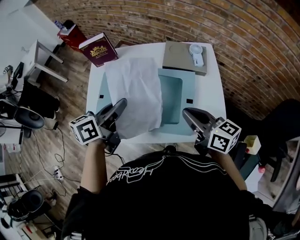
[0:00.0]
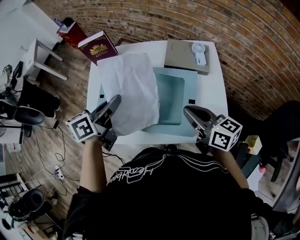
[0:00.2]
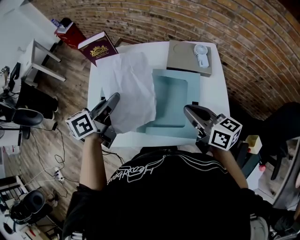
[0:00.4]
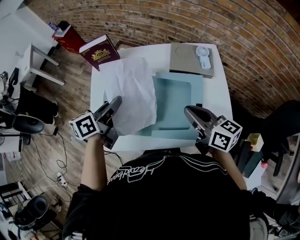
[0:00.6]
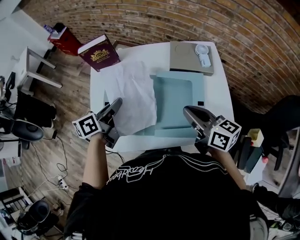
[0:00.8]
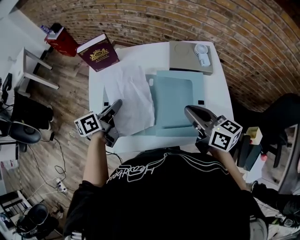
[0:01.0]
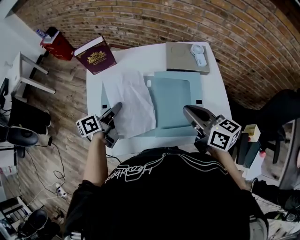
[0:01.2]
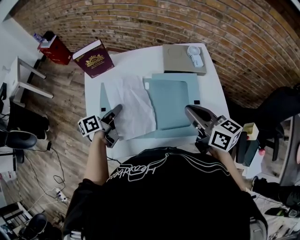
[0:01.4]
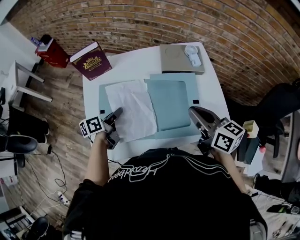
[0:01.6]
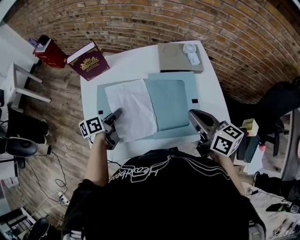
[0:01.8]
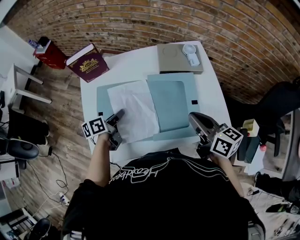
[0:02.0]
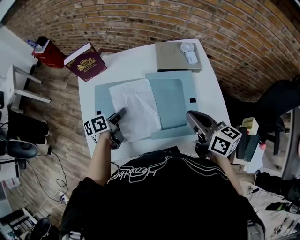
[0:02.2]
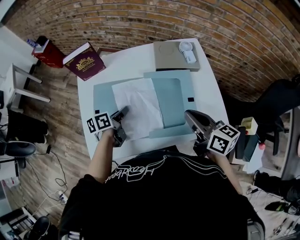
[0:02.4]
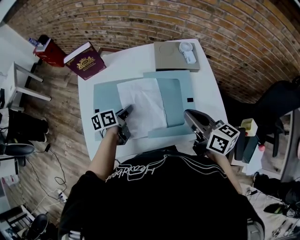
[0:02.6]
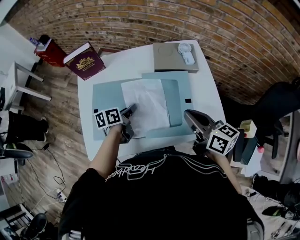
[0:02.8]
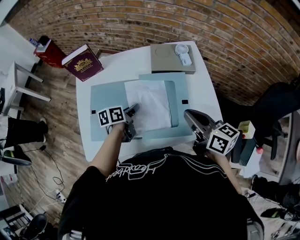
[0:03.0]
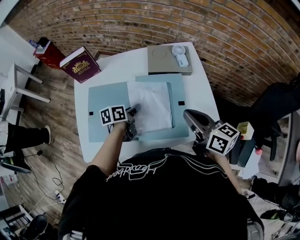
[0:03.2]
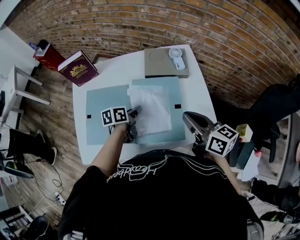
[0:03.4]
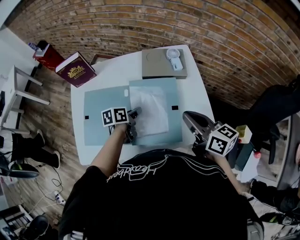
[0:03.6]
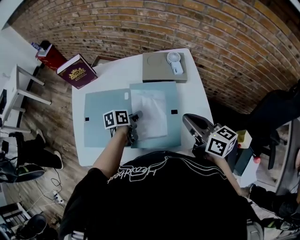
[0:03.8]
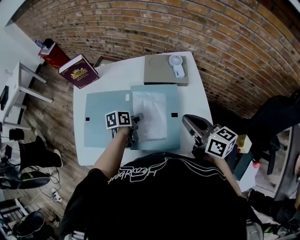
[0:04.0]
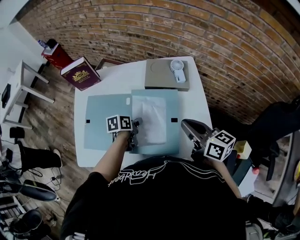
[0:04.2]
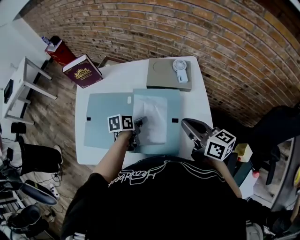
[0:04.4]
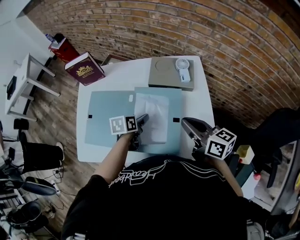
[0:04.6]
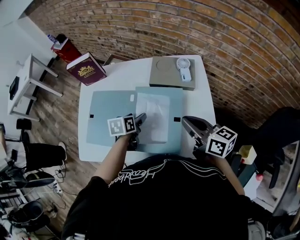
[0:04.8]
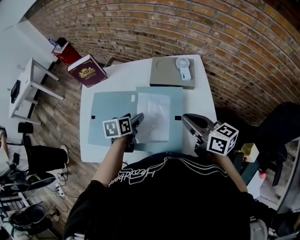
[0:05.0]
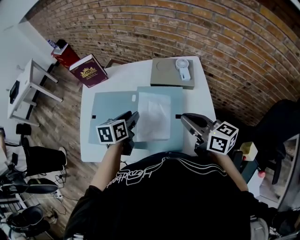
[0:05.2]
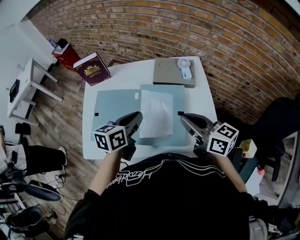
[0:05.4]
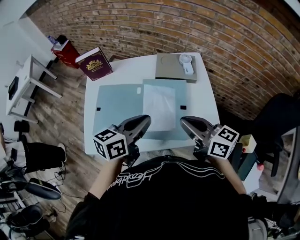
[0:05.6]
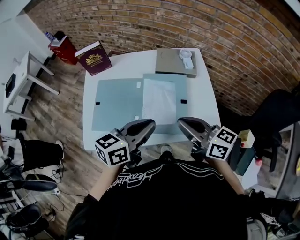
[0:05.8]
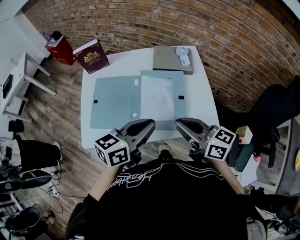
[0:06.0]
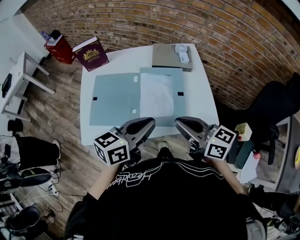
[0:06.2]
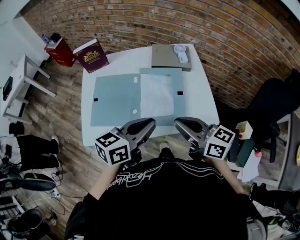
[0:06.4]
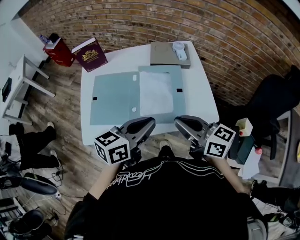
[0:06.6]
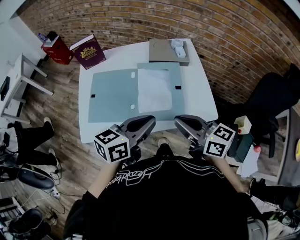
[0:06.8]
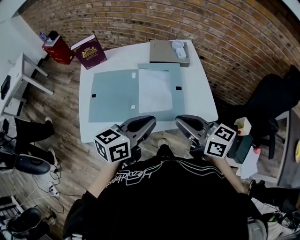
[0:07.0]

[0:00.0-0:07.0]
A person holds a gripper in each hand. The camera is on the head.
0:00.0 to 0:01.4: The right gripper is displaced to the left by about 5 cm. Meanwhile the left gripper travels downward, to the left and forward by about 20 cm, and turns by roughly 20 degrees.
0:01.4 to 0:02.8: The right gripper ends up about 5 cm from where it was. Meanwhile the left gripper is displaced to the right and downward by approximately 10 cm.
0:02.8 to 0:04.2: The two grippers go roughly 10 cm to the right.
0:04.2 to 0:05.6: The left gripper moves upward and backward, approximately 25 cm, turns by about 40 degrees, and opens, then closes again; the right gripper goes some 10 cm backward and to the left.
0:05.6 to 0:07.0: The grippers both shift backward by roughly 10 cm.

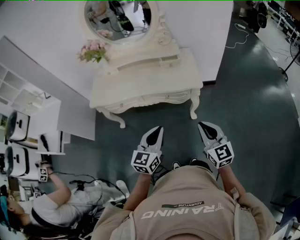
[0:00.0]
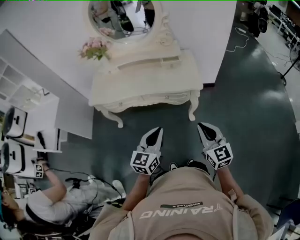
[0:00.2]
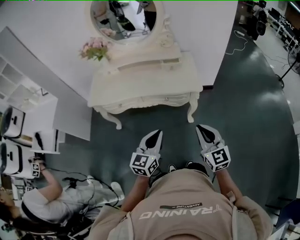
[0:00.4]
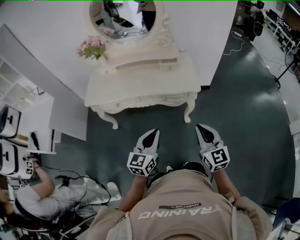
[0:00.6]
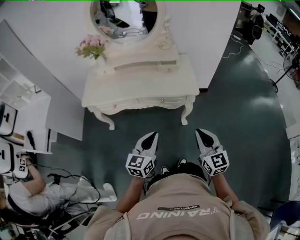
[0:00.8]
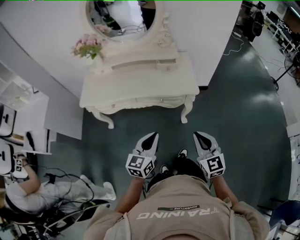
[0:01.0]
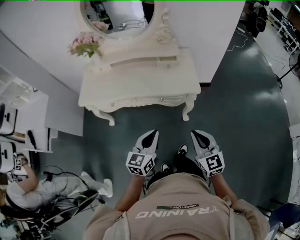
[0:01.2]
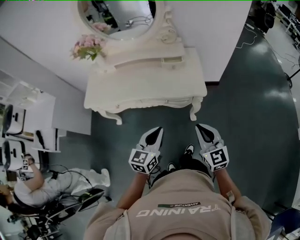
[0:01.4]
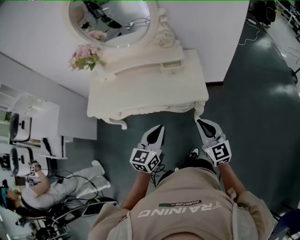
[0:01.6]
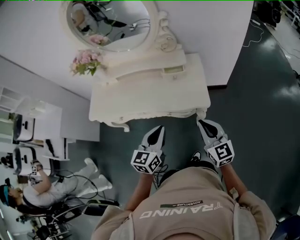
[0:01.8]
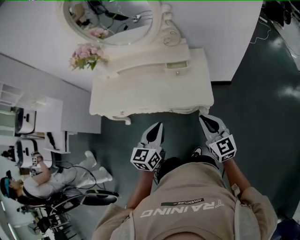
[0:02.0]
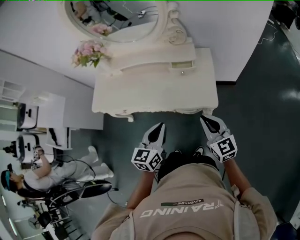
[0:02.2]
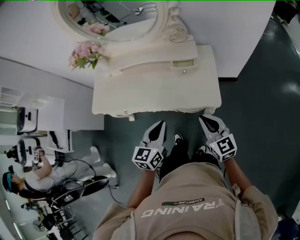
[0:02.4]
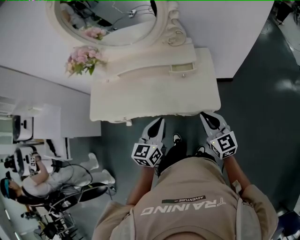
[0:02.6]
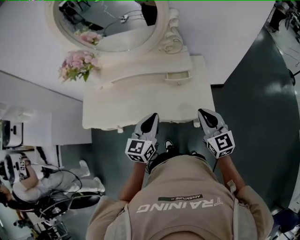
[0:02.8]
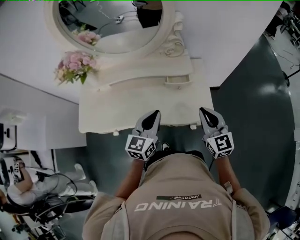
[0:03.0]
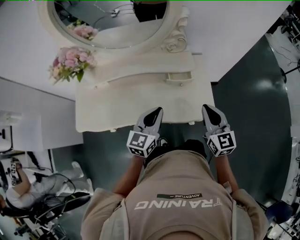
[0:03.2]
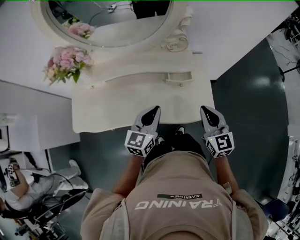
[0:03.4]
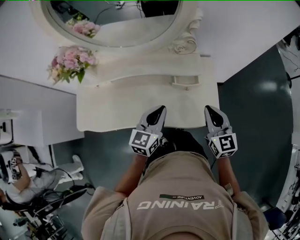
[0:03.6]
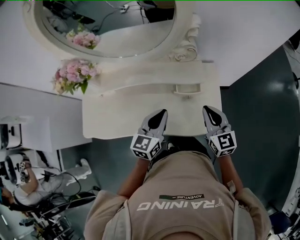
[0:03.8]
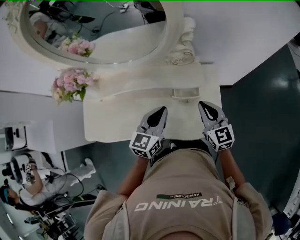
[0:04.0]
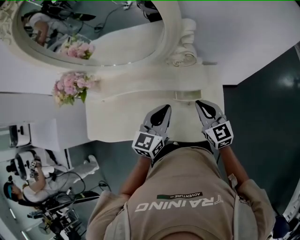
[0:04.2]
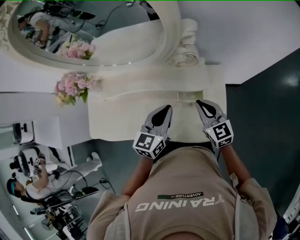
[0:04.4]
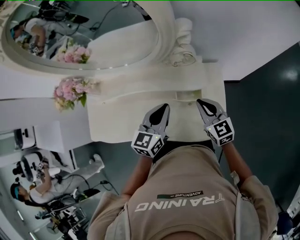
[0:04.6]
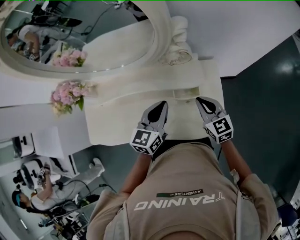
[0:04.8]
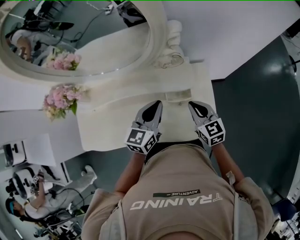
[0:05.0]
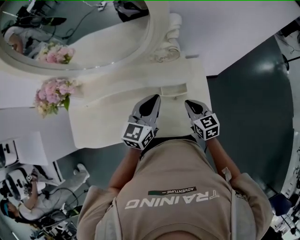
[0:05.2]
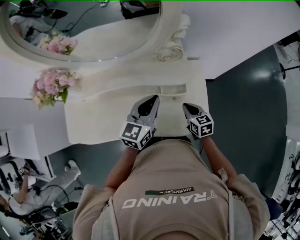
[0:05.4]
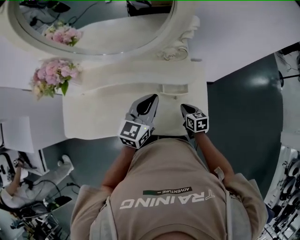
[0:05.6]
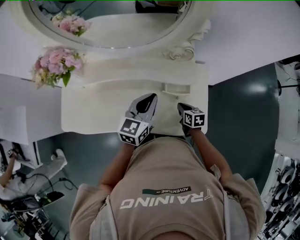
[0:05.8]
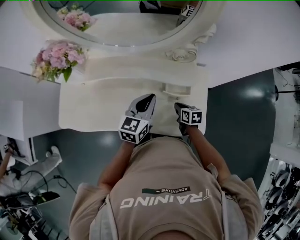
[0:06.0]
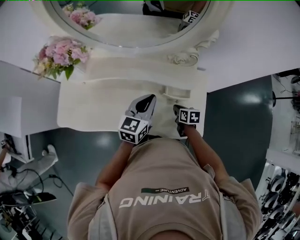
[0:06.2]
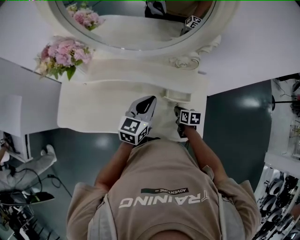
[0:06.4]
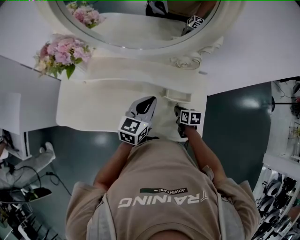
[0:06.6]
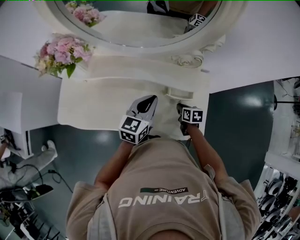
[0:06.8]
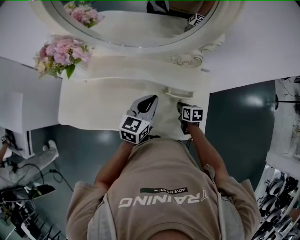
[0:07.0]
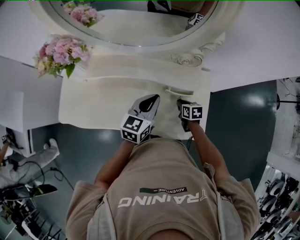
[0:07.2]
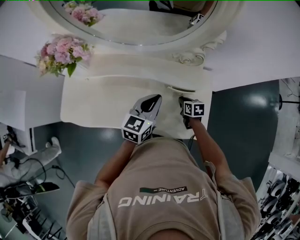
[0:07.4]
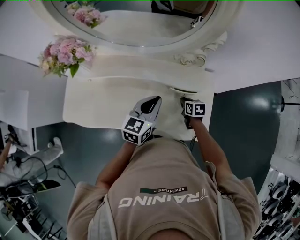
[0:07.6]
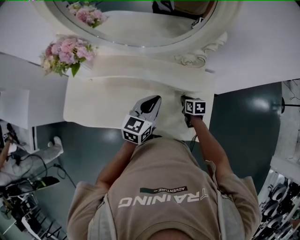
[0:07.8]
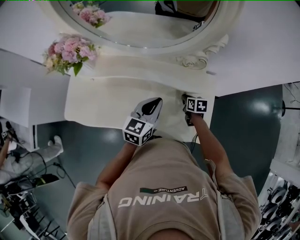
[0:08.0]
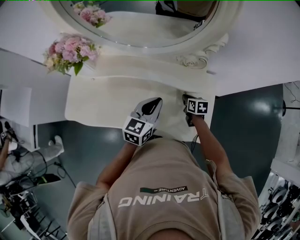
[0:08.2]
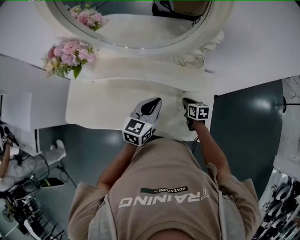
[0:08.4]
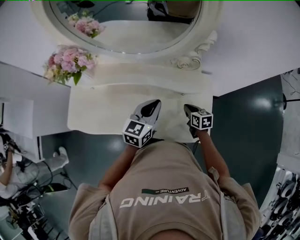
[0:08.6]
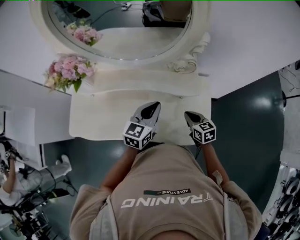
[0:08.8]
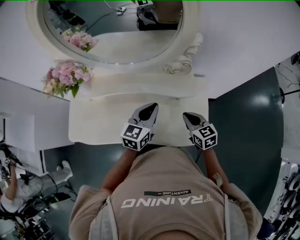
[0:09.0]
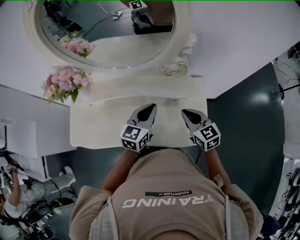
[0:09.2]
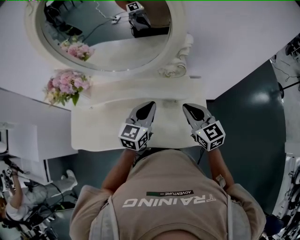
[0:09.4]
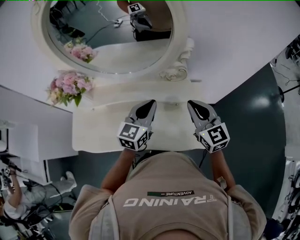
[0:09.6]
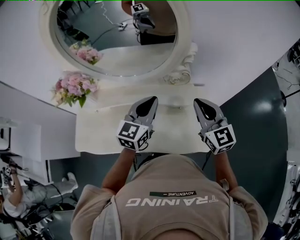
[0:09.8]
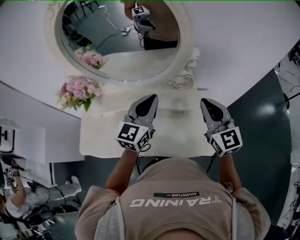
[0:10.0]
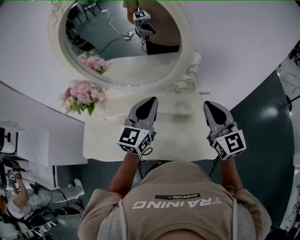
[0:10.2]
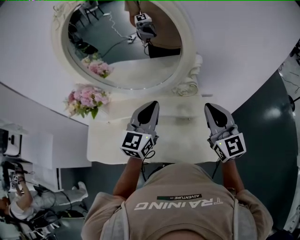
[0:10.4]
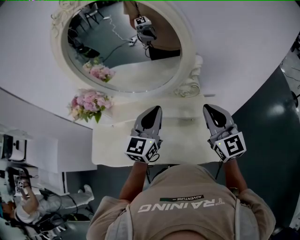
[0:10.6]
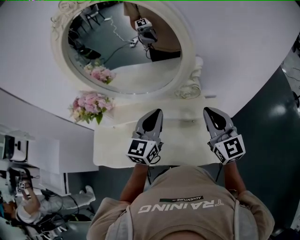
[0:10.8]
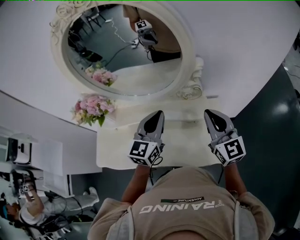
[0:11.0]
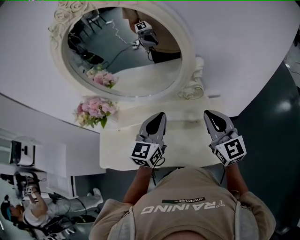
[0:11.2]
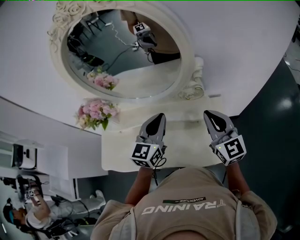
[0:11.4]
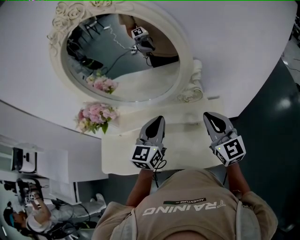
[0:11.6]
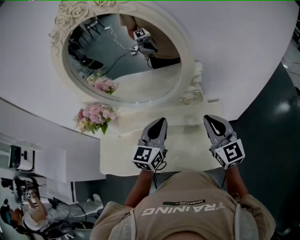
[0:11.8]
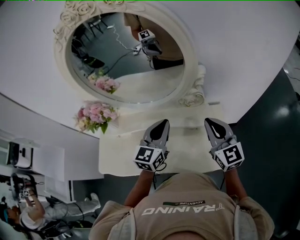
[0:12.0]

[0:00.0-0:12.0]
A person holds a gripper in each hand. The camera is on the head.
0:00.0 to 0:01.6: The grippers both shift forward by about 15 cm.
0:01.6 to 0:03.0: Both grippers travel together forward, approximately 20 cm.
0:03.0 to 0:04.4: The two grippers go approximately 20 cm forward.
0:04.4 to 0:06.0: The right gripper travels downward by some 20 cm, and tips its fingers downward by approximately 30 degrees. The left gripper travels to the left by some 5 cm.
0:06.0 to 0:07.6: The right gripper heads forward, covering about 5 cm.
0:07.6 to 0:09.0: The right gripper travels upward and backward by some 20 cm, and swivels roughly 30 degrees.
0:09.0 to 0:10.4: The right gripper travels upward by roughly 25 cm, and tips its fingers upward by approximately 30 degrees. The left gripper travels upward by approximately 15 cm.
0:10.4 to 0:12.0: The grippers move only a little.

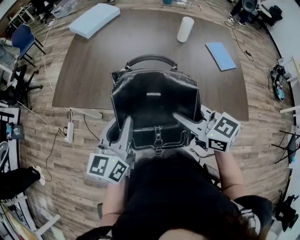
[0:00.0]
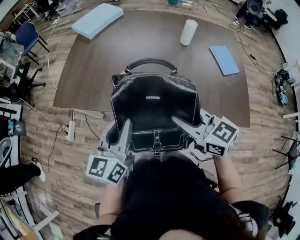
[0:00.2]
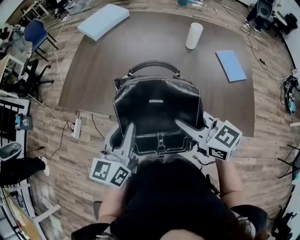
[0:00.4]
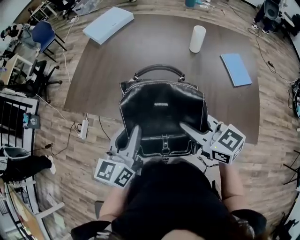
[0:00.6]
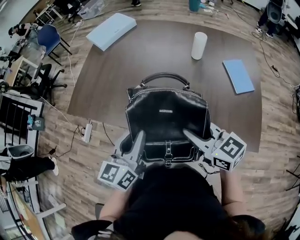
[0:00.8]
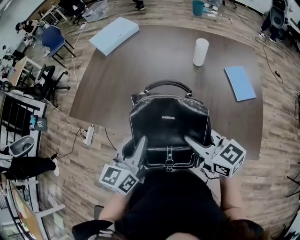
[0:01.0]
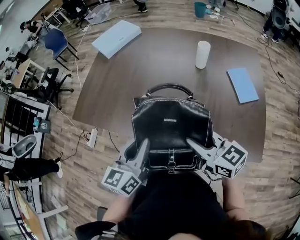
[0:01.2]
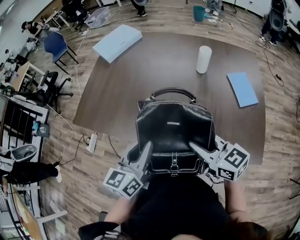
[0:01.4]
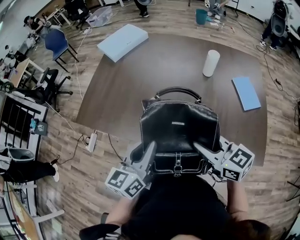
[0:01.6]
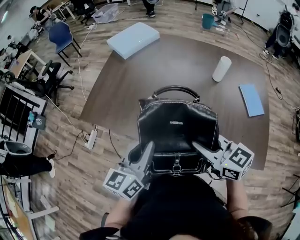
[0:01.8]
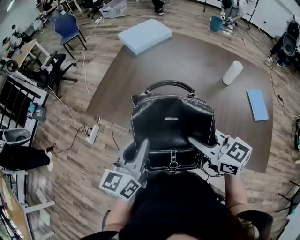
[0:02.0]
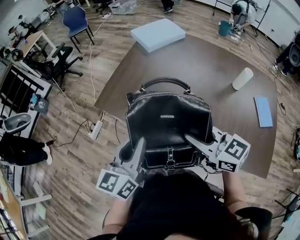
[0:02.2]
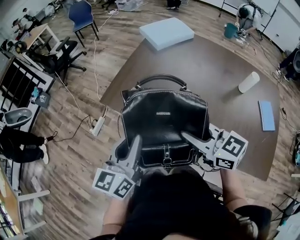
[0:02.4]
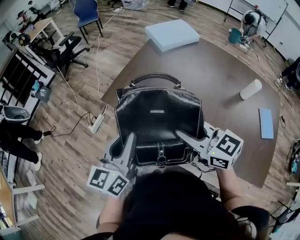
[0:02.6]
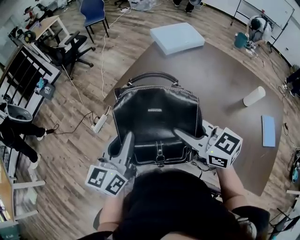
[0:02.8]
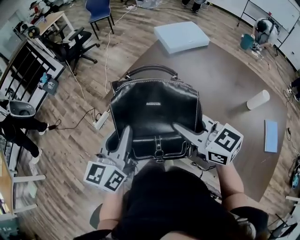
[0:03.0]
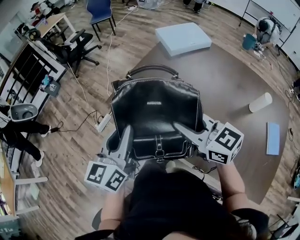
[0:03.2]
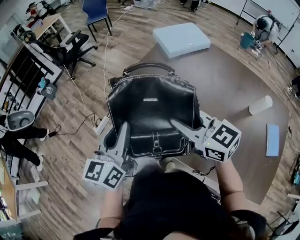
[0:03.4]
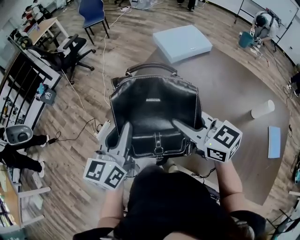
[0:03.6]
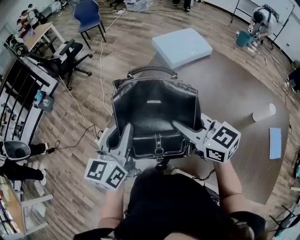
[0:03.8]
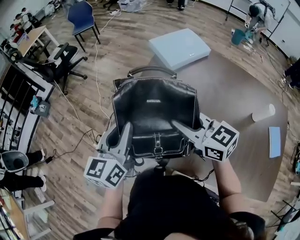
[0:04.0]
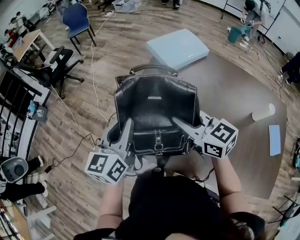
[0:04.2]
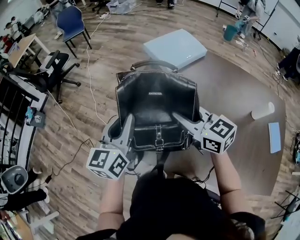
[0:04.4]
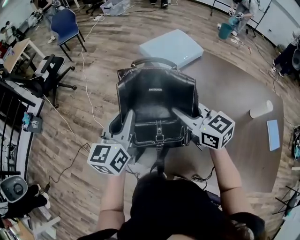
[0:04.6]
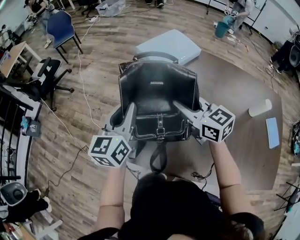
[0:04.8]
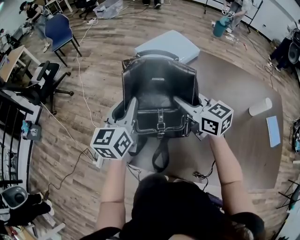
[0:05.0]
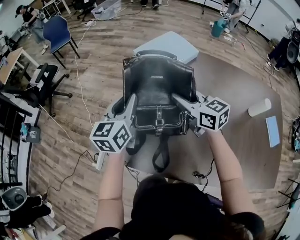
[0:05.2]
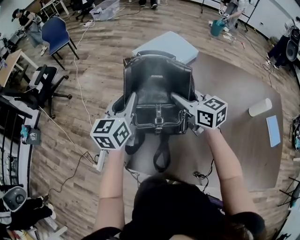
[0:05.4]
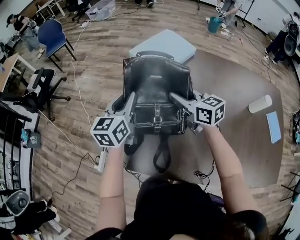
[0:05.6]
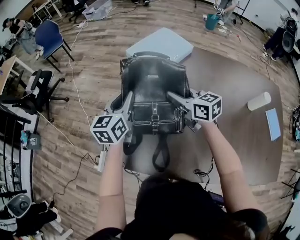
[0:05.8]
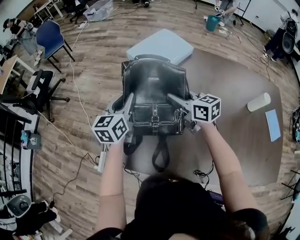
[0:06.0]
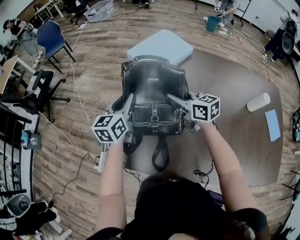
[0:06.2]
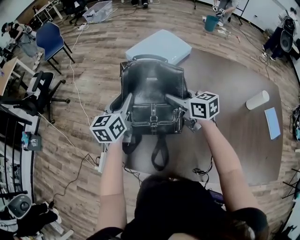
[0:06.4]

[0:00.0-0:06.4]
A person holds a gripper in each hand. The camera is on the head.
0:00.0 to 0:01.6: The two grippers go roughly 10 cm to the right.
0:01.6 to 0:03.2: The left gripper ends up roughly 30 cm from where it was, and changes its angle by about 30 degrees. The right gripper changes place by some 30 cm, and changes its angle by some 30 degrees.
0:03.2 to 0:04.8: The grippers both shift forward by roughly 30 cm. The right gripper changes its angle by approximately 30 degrees.
0:04.8 to 0:06.4: The right gripper heads downward and forward, covering approximately 10 cm, and opens. The left gripper goes about 10 cm forward and downward.
